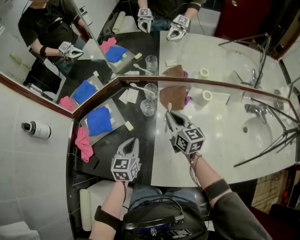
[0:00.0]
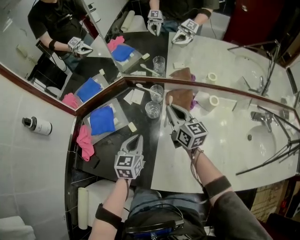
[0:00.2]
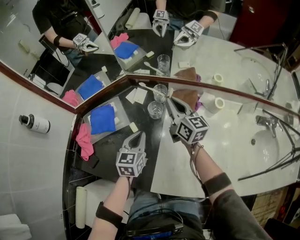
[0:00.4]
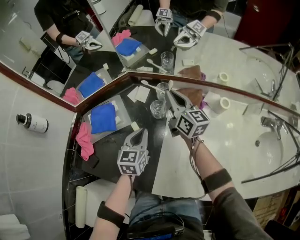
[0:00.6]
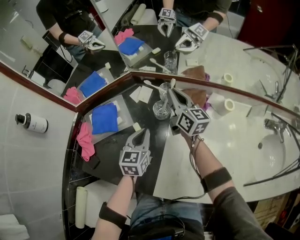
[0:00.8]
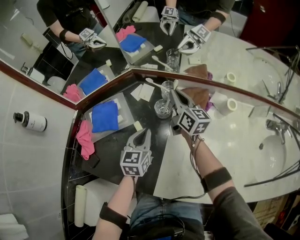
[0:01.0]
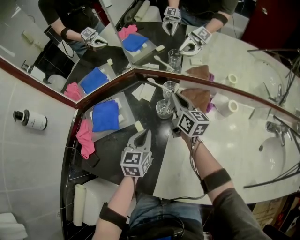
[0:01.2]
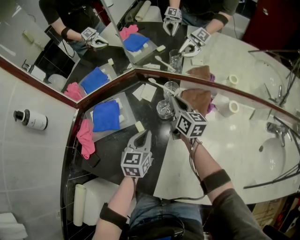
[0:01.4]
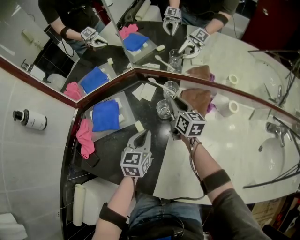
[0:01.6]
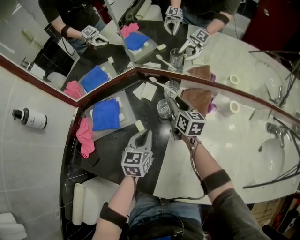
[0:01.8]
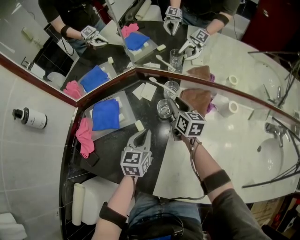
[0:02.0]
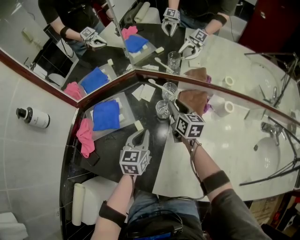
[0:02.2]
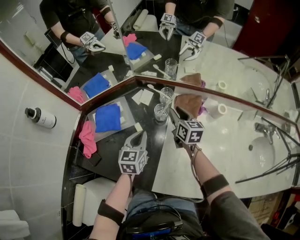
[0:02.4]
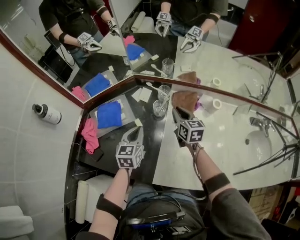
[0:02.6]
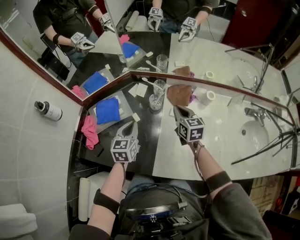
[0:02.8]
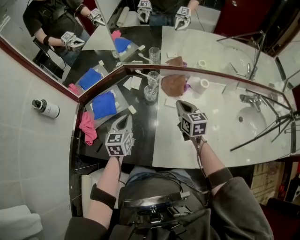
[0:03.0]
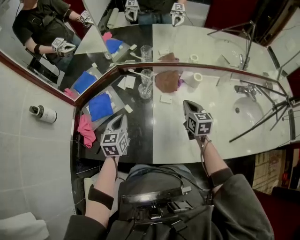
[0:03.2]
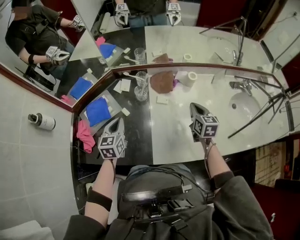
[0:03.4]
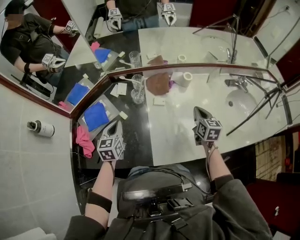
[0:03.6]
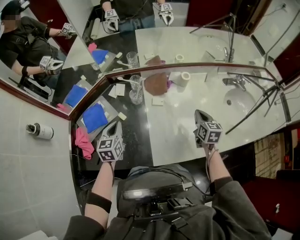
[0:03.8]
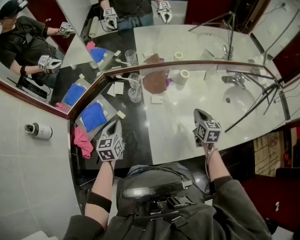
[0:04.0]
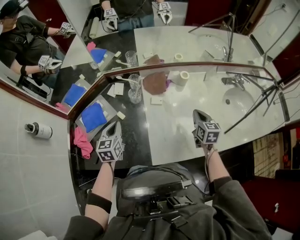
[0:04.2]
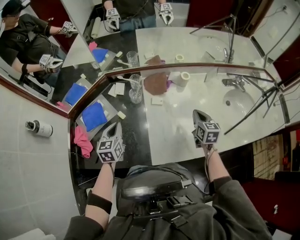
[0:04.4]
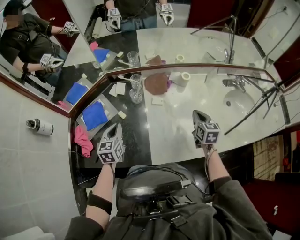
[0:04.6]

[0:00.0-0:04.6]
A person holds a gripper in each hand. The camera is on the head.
0:00.0 to 0:01.6: The right gripper travels forward, downward and to the left by approximately 15 cm. The left gripper is displaced forward and downward by roughly 10 cm.
0:01.6 to 0:03.0: The right gripper moves backward, upward and to the right, roughly 20 cm, while the left gripper is displaced upward and backward by roughly 10 cm.
0:03.0 to 0:04.6: The right gripper heads to the right and backward, covering roughly 20 cm, and turns by about 20 degrees.

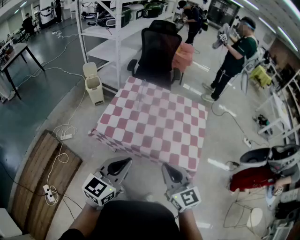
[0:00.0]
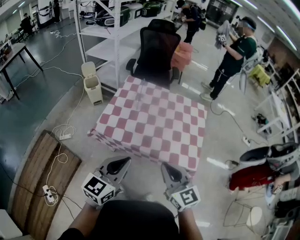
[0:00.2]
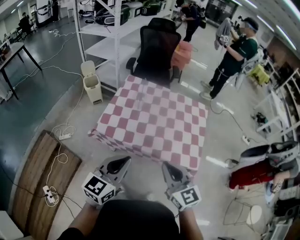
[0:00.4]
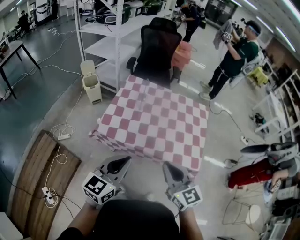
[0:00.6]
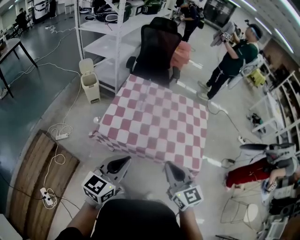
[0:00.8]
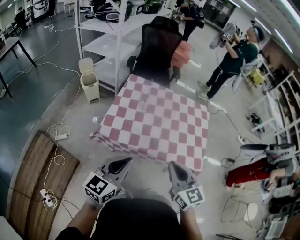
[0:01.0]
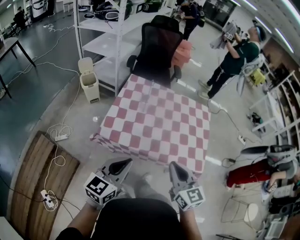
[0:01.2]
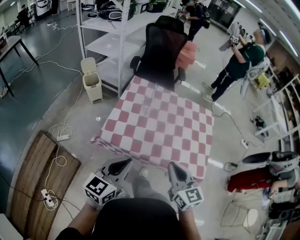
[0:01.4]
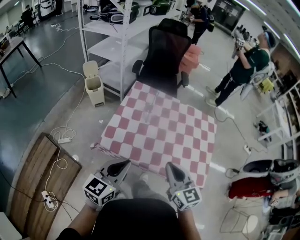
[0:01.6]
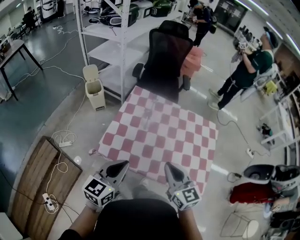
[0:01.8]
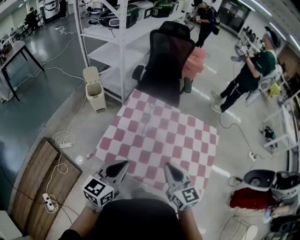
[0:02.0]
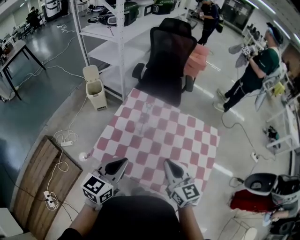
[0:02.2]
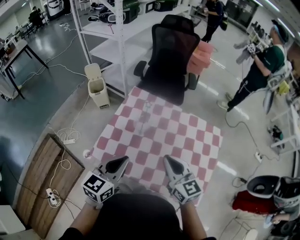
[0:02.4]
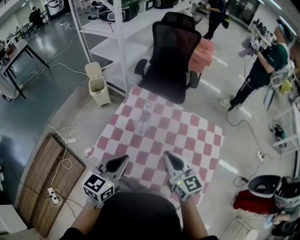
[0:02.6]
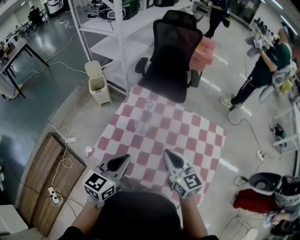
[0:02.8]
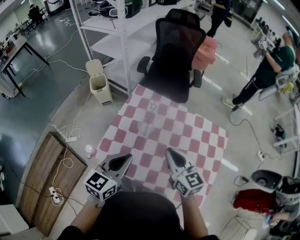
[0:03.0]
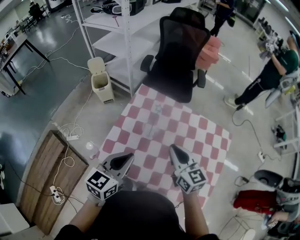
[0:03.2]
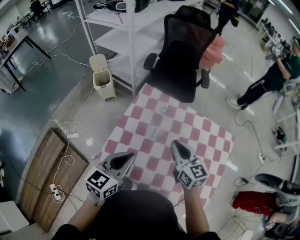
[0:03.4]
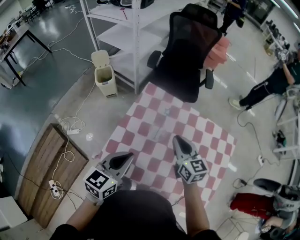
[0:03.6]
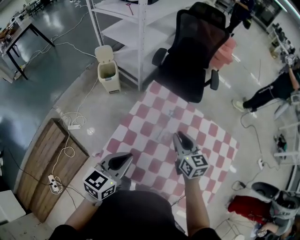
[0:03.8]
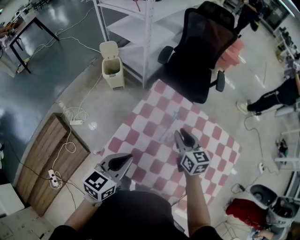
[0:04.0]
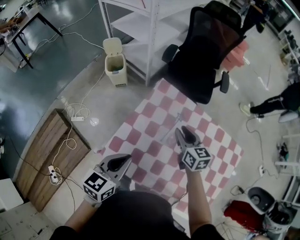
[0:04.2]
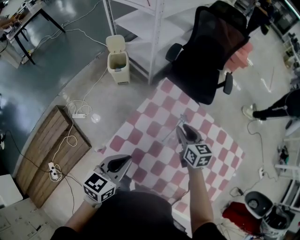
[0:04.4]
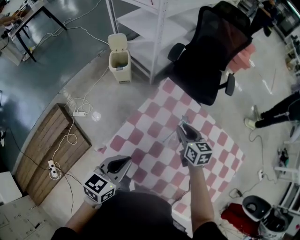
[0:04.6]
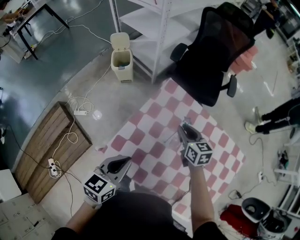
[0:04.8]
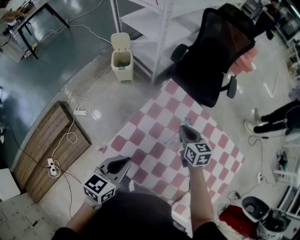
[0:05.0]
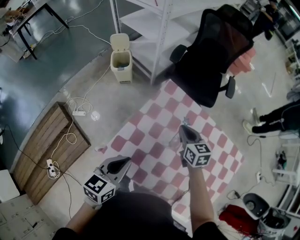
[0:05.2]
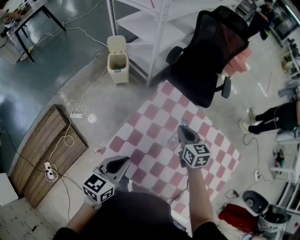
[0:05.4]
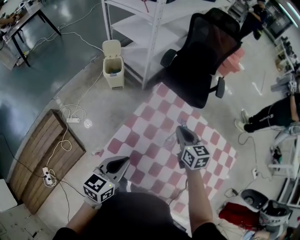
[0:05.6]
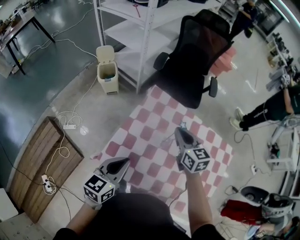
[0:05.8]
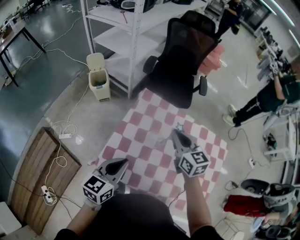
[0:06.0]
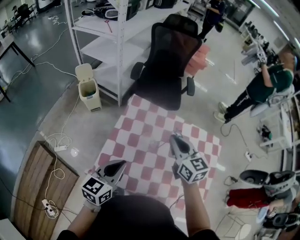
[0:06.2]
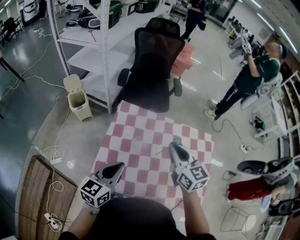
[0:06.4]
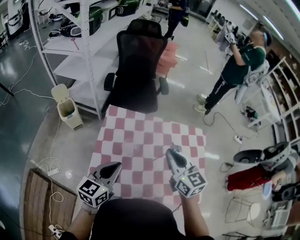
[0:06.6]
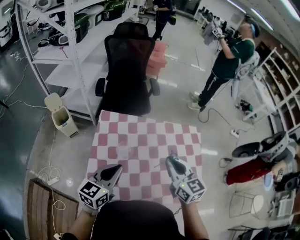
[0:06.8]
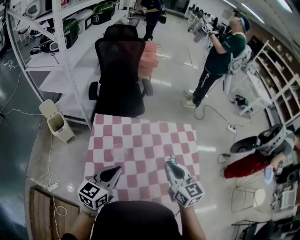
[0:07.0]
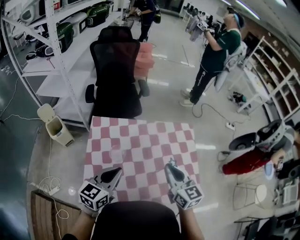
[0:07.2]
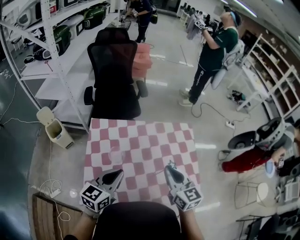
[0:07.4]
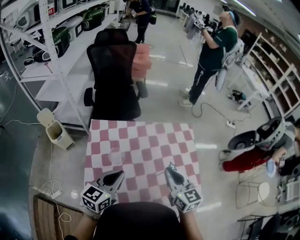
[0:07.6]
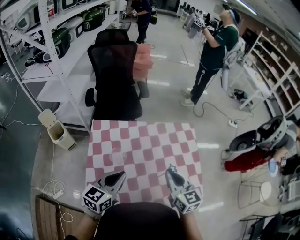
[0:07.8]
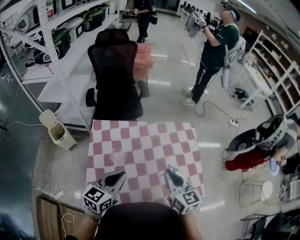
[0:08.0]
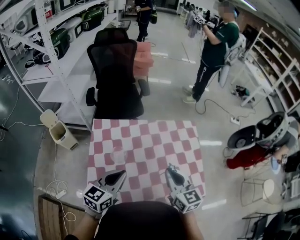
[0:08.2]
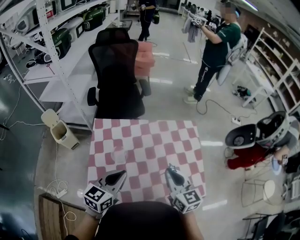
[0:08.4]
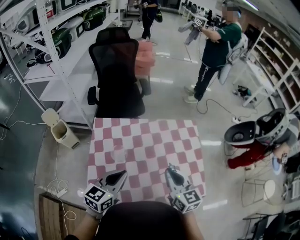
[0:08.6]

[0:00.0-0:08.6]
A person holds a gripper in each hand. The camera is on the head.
0:00.0 to 0:01.4: The left gripper goes about 15 cm to the left, forward and downward. The right gripper goes about 10 cm forward and to the left.
0:01.4 to 0:02.8: The grippers both shift forward by some 20 cm.
0:02.8 to 0:04.4: The right gripper is displaced forward and downward by some 25 cm, and opens up. Meanwhile the left gripper goes roughly 15 cm to the left, forward and downward.
0:04.4 to 0:05.8: The right gripper travels upward by some 10 cm, and closes up.
0:05.8 to 0:07.2: The left gripper shifts by approximately 15 cm, and rotates roughly 30 degrees. Meanwhile the right gripper changes place by roughly 25 cm, and changes its angle by roughly 30 degrees.
0:07.2 to 0:08.6: There are only small adjustments of the grippers.

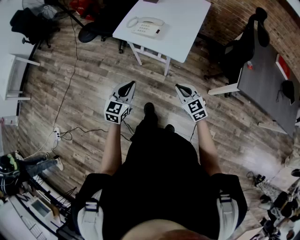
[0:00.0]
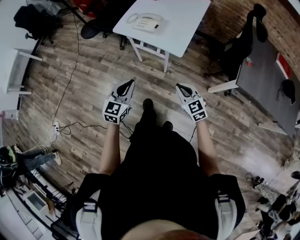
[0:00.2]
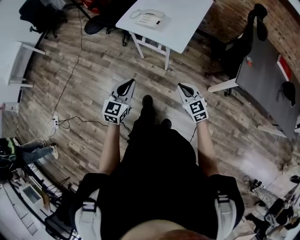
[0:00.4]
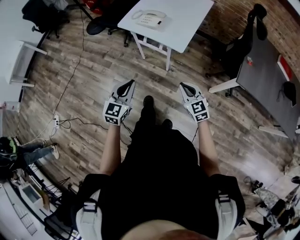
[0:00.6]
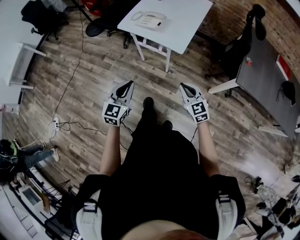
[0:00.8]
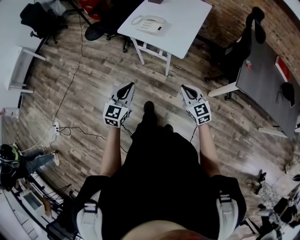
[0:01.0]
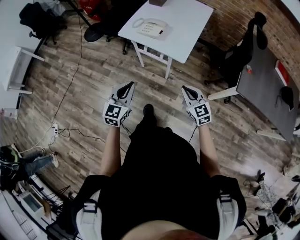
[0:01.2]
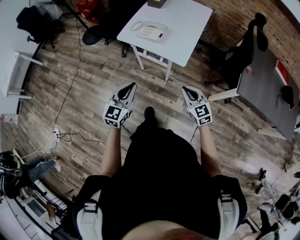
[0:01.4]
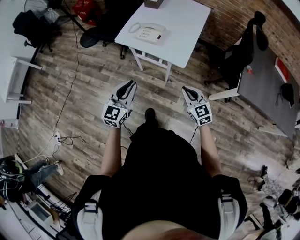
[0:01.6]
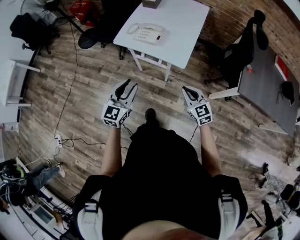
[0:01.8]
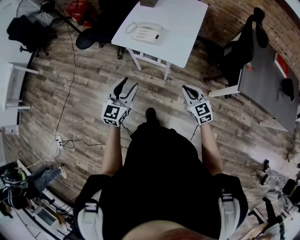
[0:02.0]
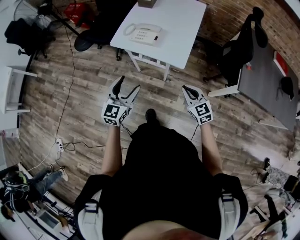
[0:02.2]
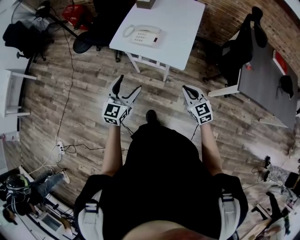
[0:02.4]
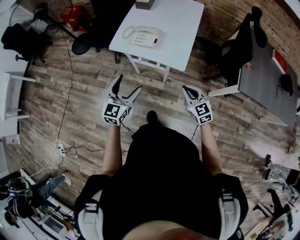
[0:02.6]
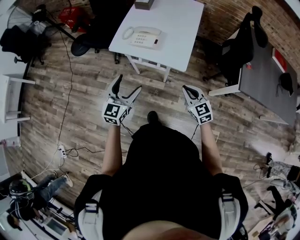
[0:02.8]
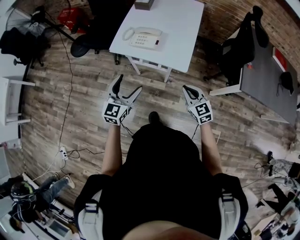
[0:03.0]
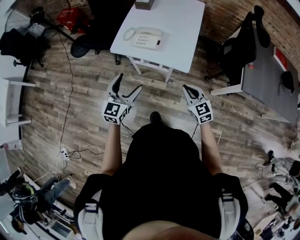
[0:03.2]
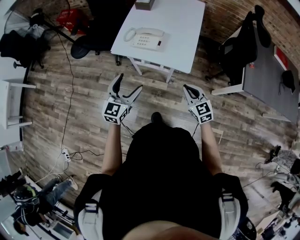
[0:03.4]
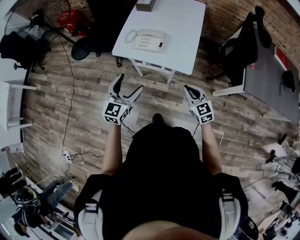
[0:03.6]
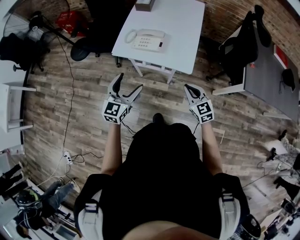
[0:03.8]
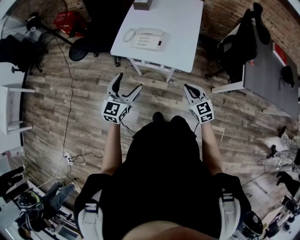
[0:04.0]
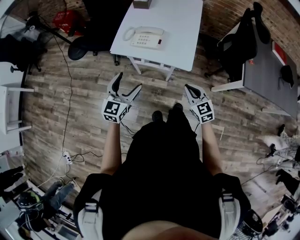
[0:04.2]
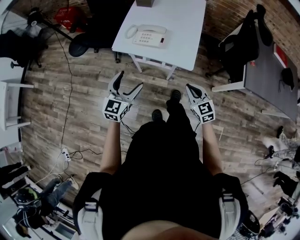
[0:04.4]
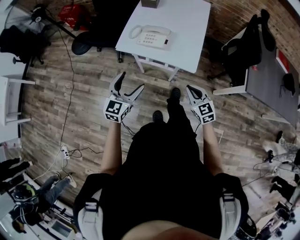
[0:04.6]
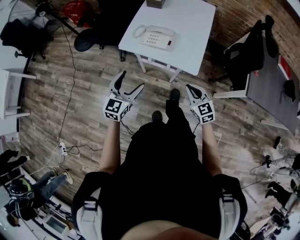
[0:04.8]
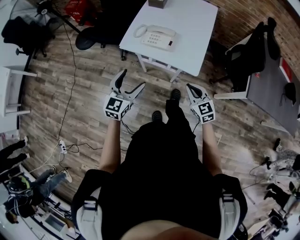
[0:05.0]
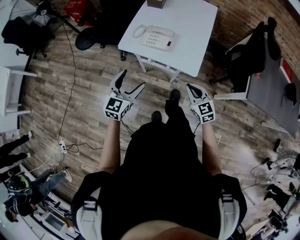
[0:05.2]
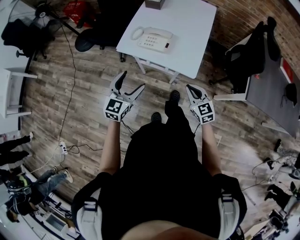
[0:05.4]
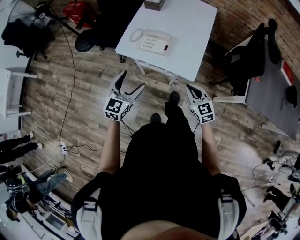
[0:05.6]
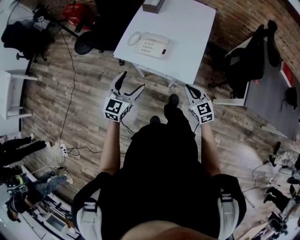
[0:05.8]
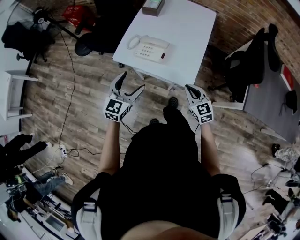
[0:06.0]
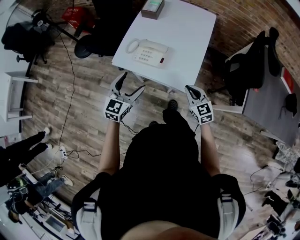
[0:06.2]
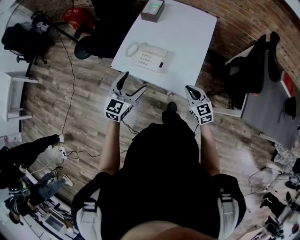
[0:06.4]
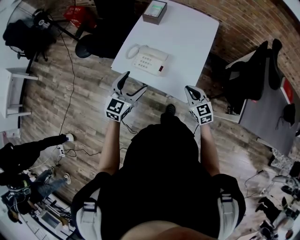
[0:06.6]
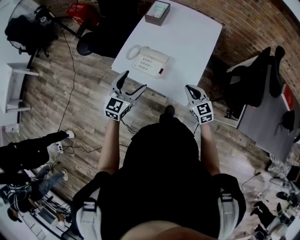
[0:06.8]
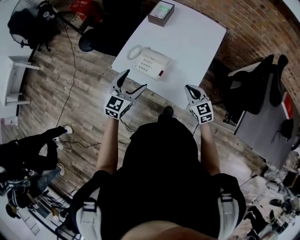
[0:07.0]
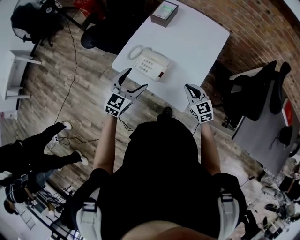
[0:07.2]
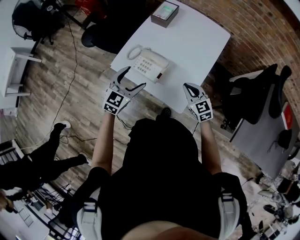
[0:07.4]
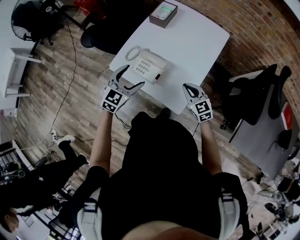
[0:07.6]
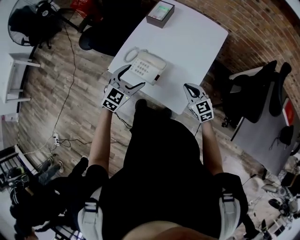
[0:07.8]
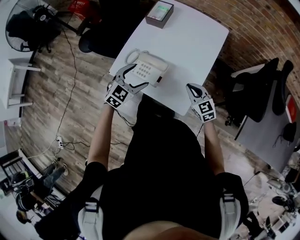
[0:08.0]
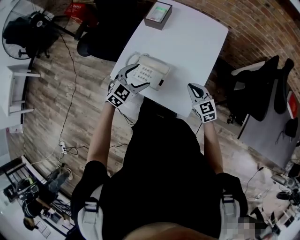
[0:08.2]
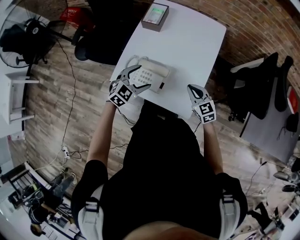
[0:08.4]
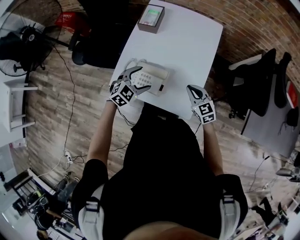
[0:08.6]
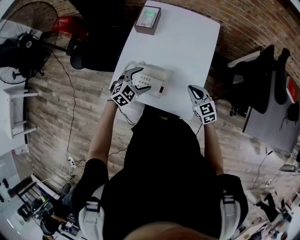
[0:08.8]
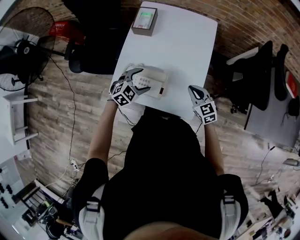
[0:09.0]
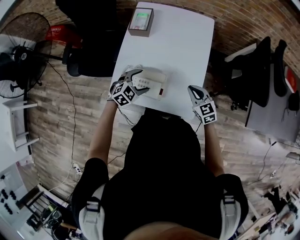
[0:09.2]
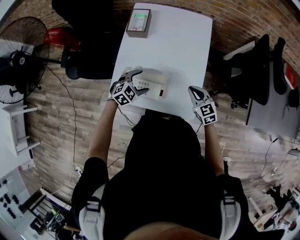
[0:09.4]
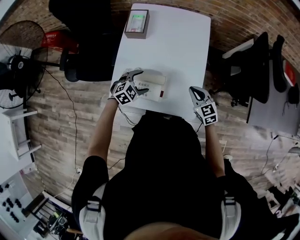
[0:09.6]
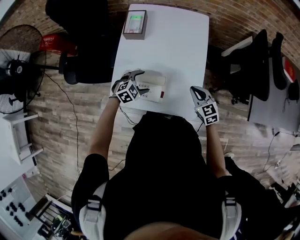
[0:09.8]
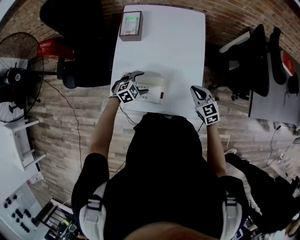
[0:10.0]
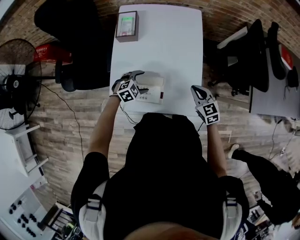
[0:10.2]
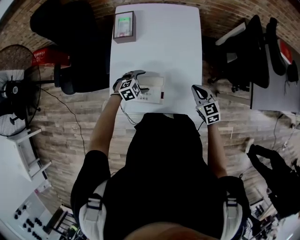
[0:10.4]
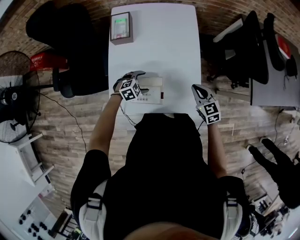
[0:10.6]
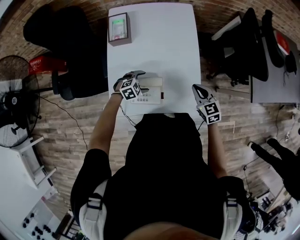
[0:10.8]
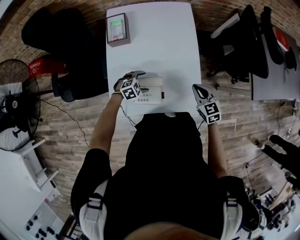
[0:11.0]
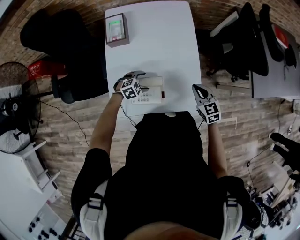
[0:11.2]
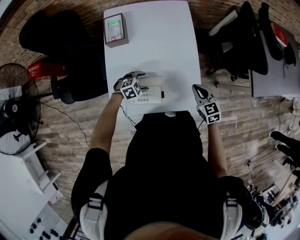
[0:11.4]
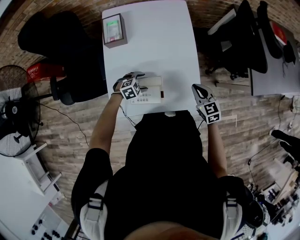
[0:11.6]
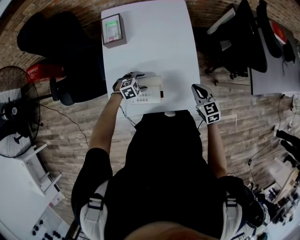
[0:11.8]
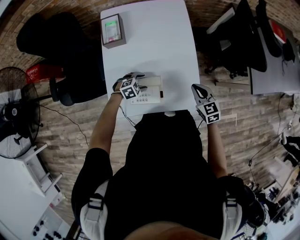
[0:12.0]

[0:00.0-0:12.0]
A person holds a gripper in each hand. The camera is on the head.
0:00.0 to 0:01.6: The right gripper moves approximately 10 cm backward and comes back, while the left gripper reaches some 10 cm backward, then returns.
0:01.6 to 0:03.0: The right gripper is displaced forward by about 5 cm. Meanwhile the left gripper is displaced forward by some 10 cm, and opens its fingers.
0:03.0 to 0:04.4: The grippers move only a little.
0:04.4 to 0:06.0: The two grippers go about 10 cm forward.
0:06.0 to 0:07.6: The grippers both shift forward by approximately 20 cm.
0:07.6 to 0:09.0: The left gripper goes roughly 15 cm forward and downward, and swivels about 40 degrees. Meanwhile the right gripper is displaced forward by about 5 cm.
0:09.0 to 0:10.4: The left gripper moves downward, approximately 10 cm, and swivels approximately 30 degrees.
0:10.4 to 0:12.0: The grippers stay close to where they were, moving slightly.
